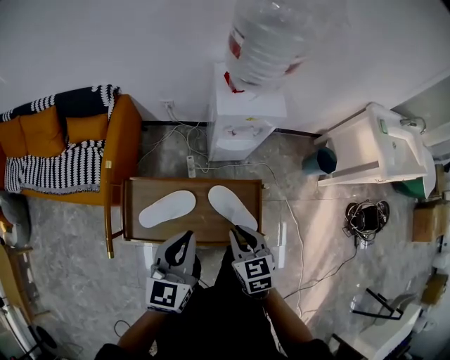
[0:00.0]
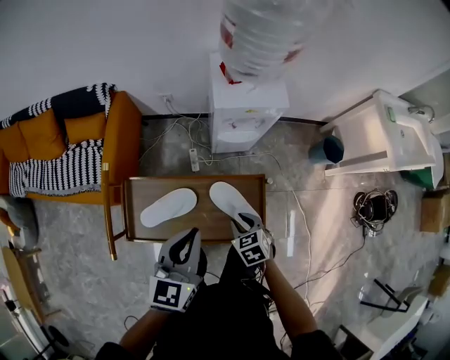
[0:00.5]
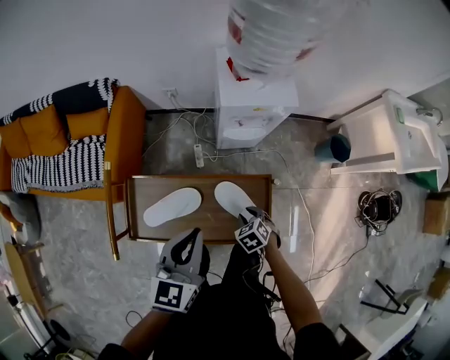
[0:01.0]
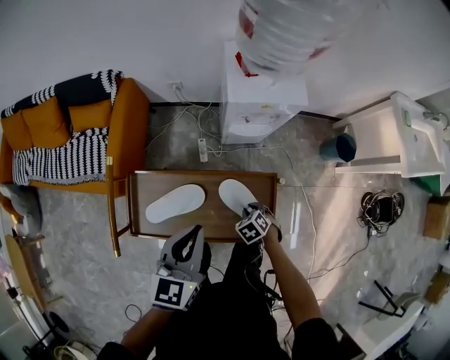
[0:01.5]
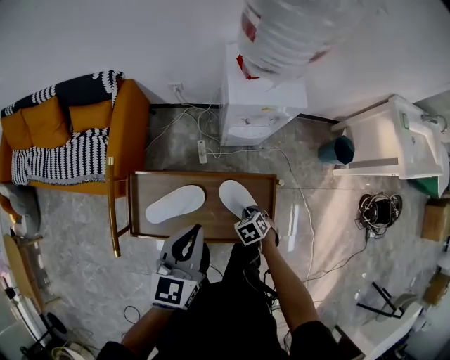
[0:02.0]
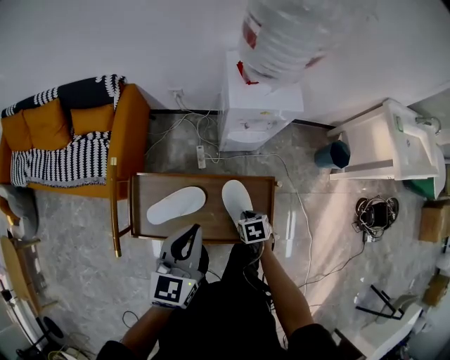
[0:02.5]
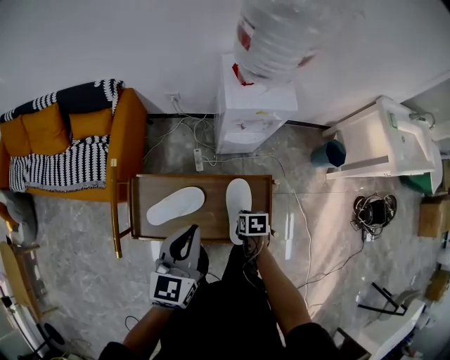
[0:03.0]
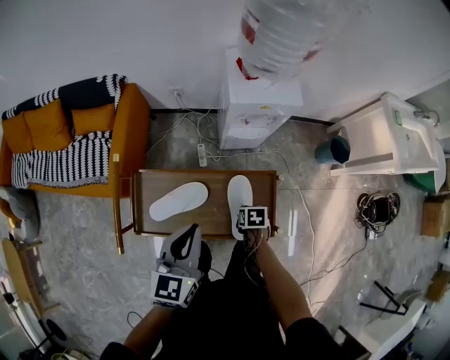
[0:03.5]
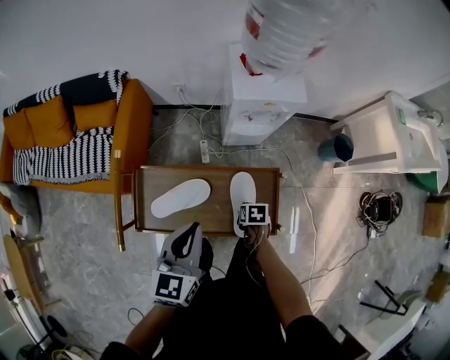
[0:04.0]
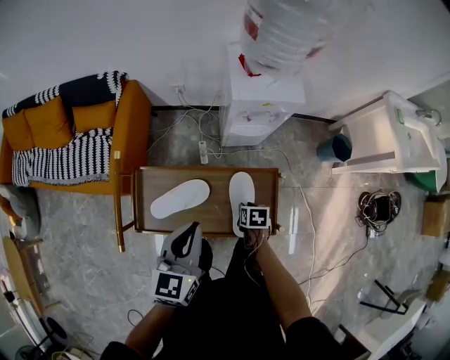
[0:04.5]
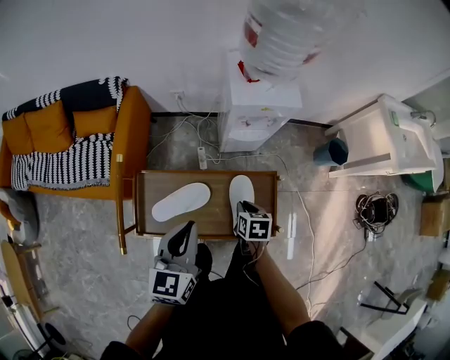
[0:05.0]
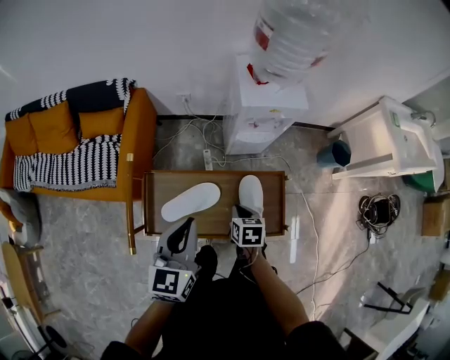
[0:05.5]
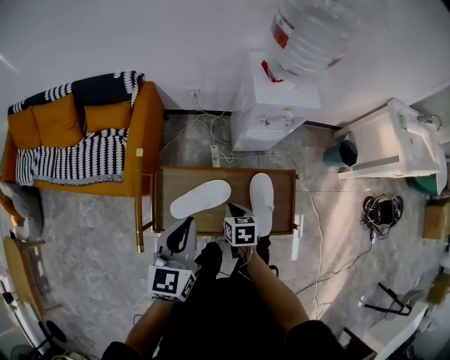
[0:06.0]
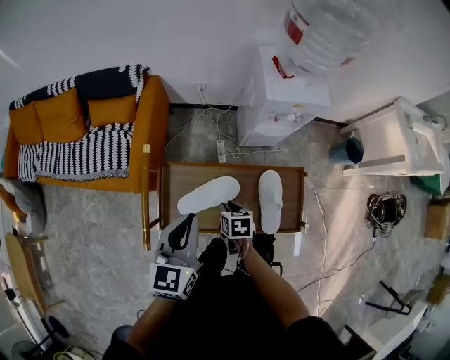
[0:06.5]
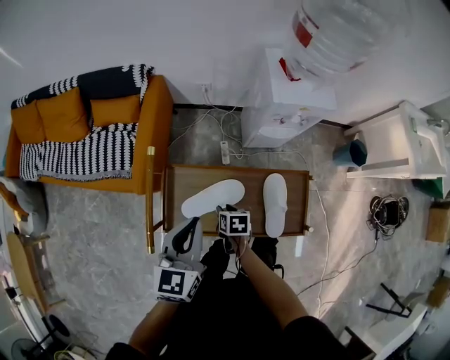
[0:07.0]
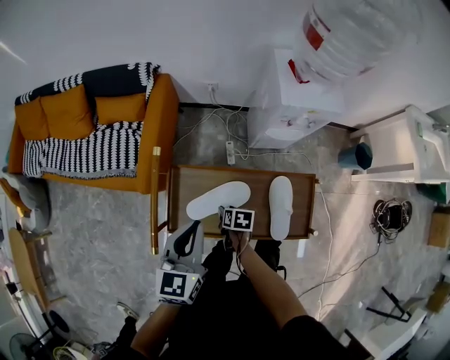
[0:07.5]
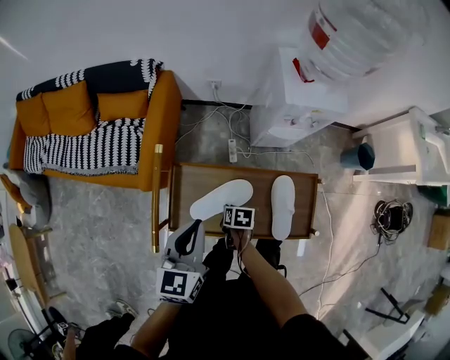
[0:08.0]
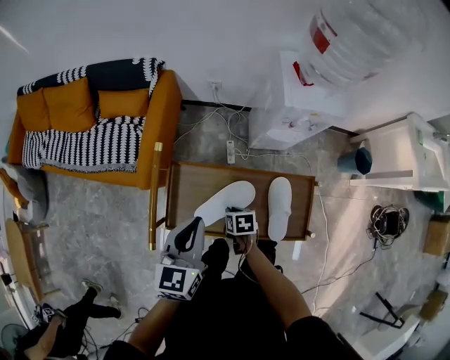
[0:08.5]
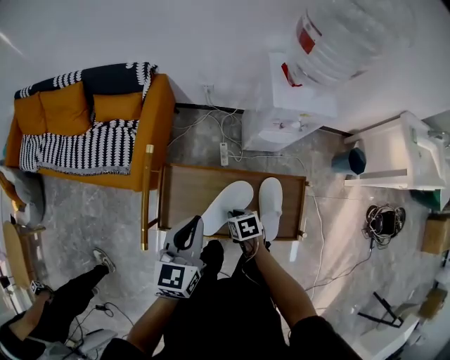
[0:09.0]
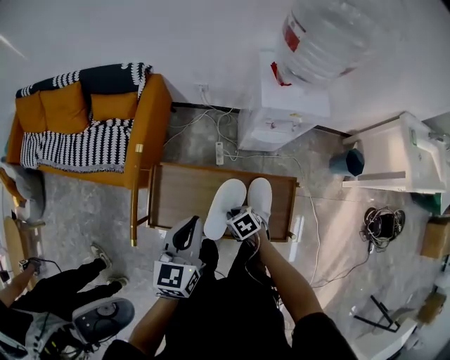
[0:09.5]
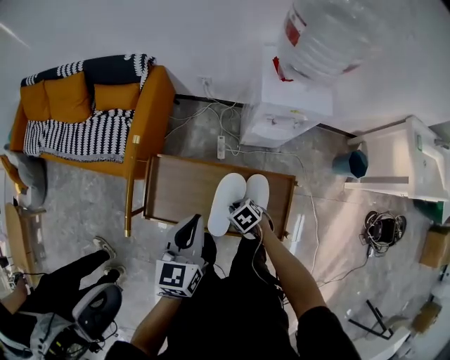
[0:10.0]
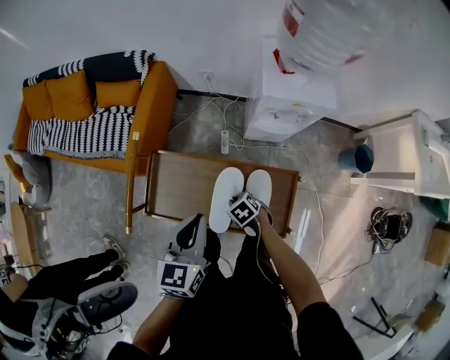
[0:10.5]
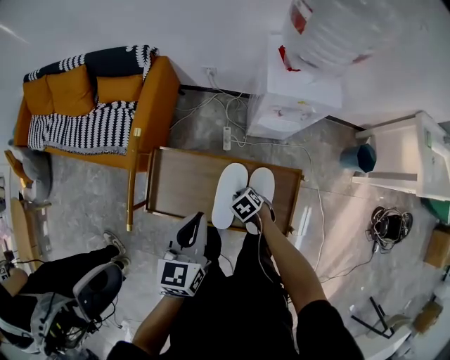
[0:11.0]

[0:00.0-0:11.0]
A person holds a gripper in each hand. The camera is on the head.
0.0 to 2.0 s: The right gripper heads downward, covering approximately 20 cm, and points its fingers some 30 degrees further downward. The left gripper shifts by approximately 5 cm.
2.0 to 3.5 s: The right gripper changes its angle by roughly 40 degrees.
3.5 to 5.5 s: The right gripper moves to the left and upward, about 15 cm. The left gripper moves to the left, approximately 5 cm.
5.5 to 7.5 s: The left gripper is displaced to the left by about 10 cm. The right gripper heads to the left and downward, covering roughly 20 cm, turns by some 20 degrees, and opens.
7.5 to 9.0 s: The right gripper is displaced upward by about 5 cm, changes its angle by some 30 degrees, and closes up.
9.0 to 11.0 s: The grippers both shift to the right by about 5 cm. The right gripper turns by about 30 degrees.

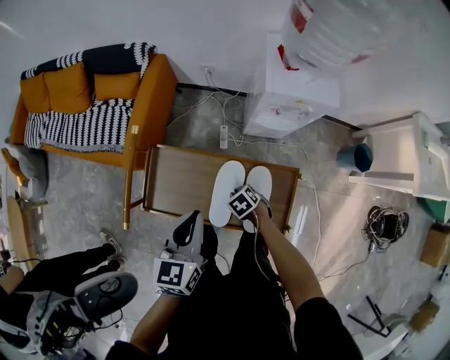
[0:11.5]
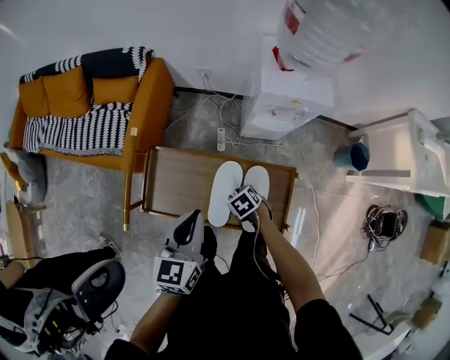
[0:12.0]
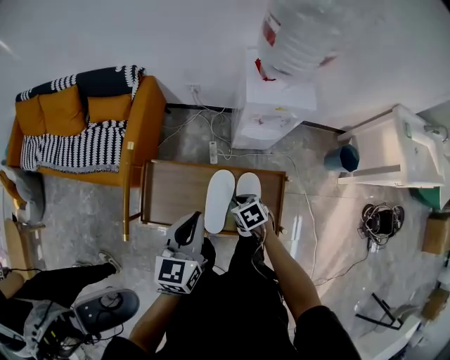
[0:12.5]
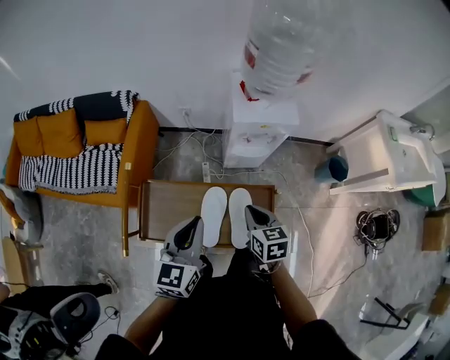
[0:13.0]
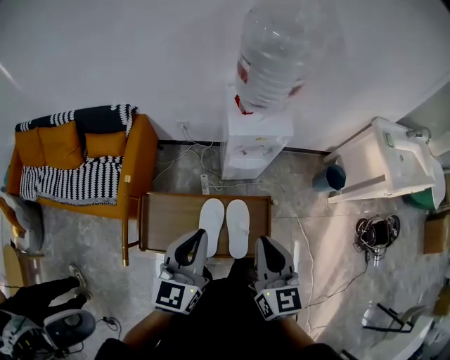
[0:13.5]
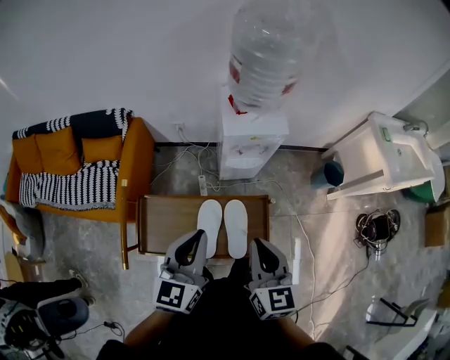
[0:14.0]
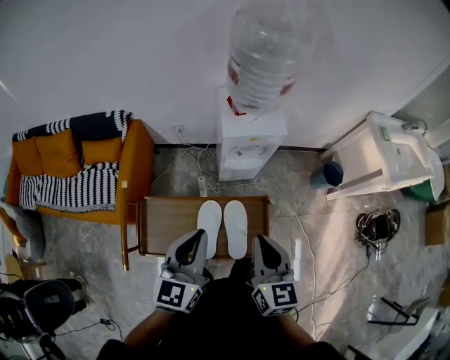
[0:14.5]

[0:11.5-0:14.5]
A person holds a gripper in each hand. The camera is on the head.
11.5 to 13.0 s: The right gripper heads upward, covering approximately 25 cm, and tips its fingers upward by roughly 30 degrees, while the left gripper moves upward, roughly 5 cm.
13.0 to 14.5 s: The left gripper heads upward, covering roughly 5 cm. The right gripper travels upward by approximately 15 cm, and changes its angle by some 30 degrees.

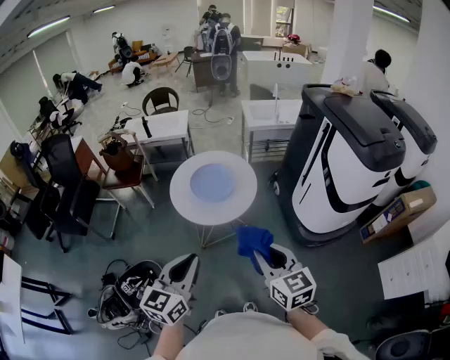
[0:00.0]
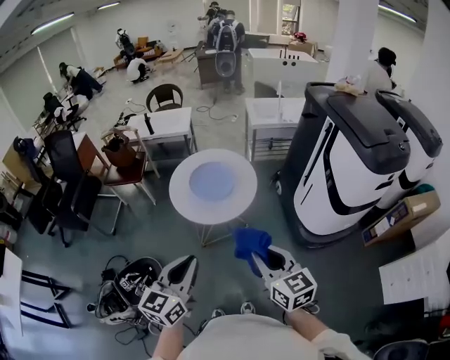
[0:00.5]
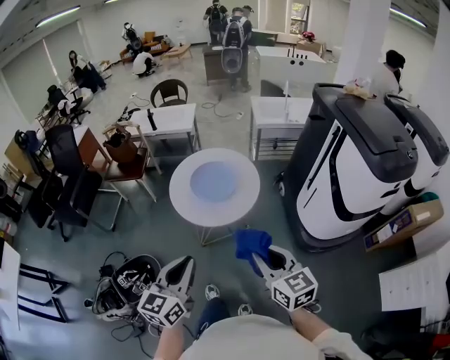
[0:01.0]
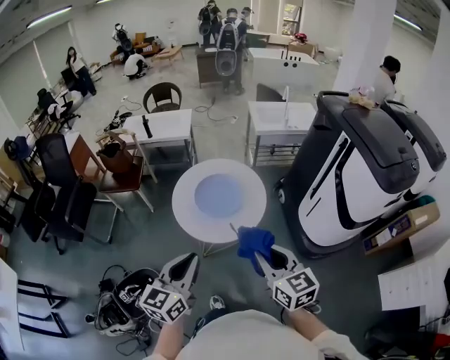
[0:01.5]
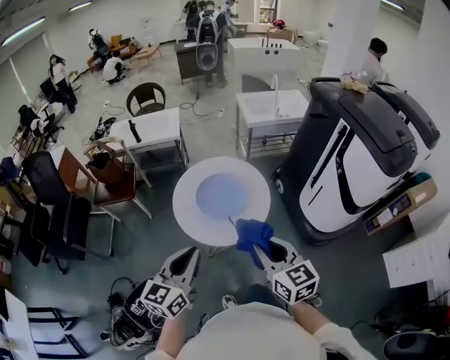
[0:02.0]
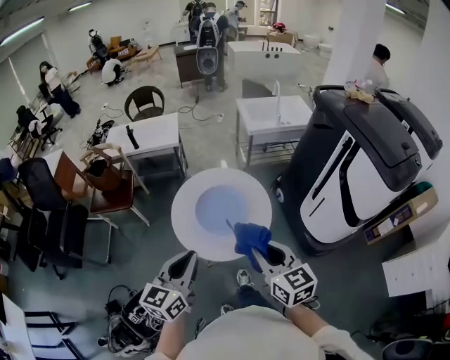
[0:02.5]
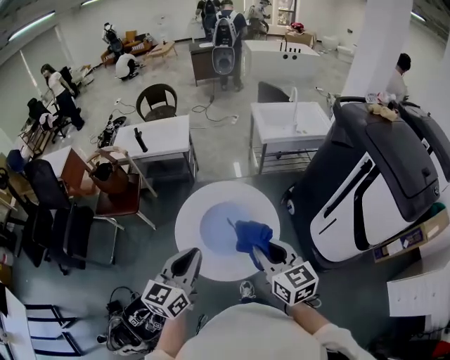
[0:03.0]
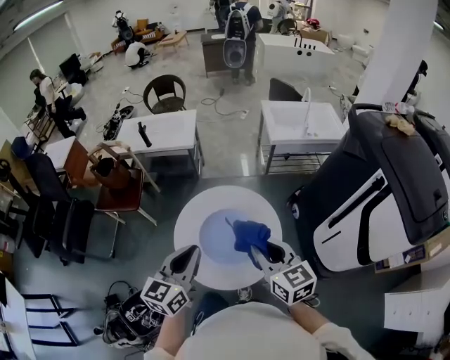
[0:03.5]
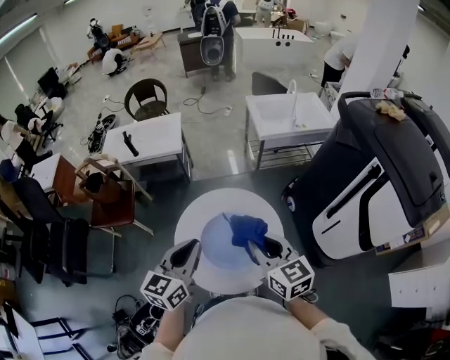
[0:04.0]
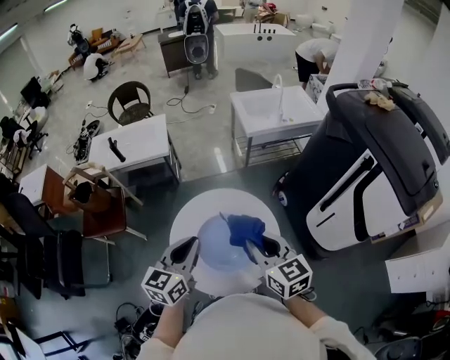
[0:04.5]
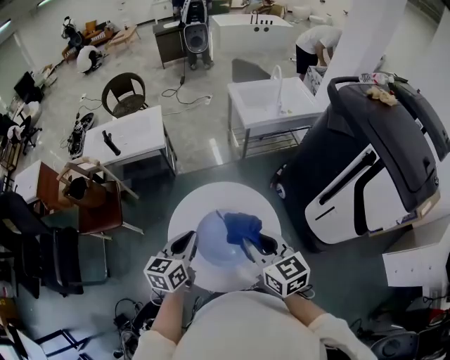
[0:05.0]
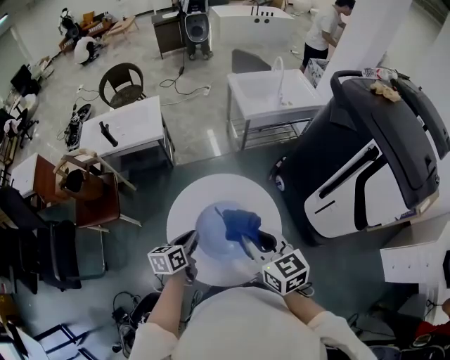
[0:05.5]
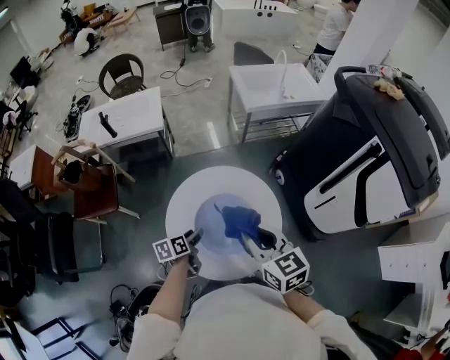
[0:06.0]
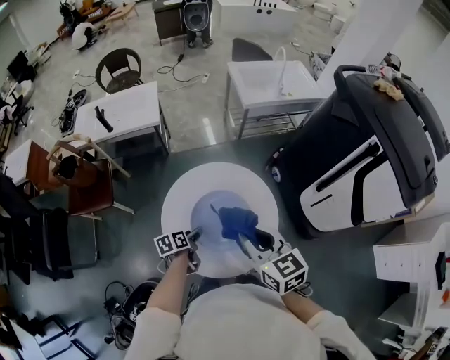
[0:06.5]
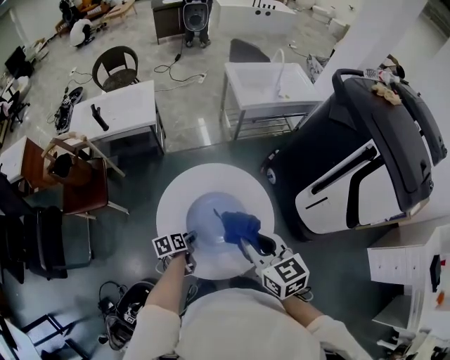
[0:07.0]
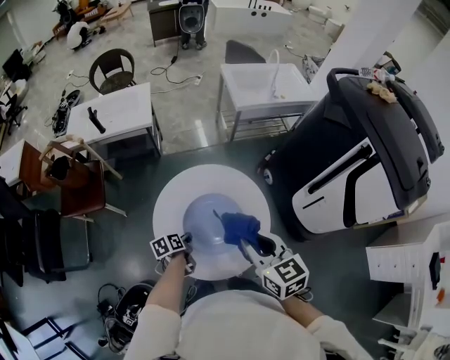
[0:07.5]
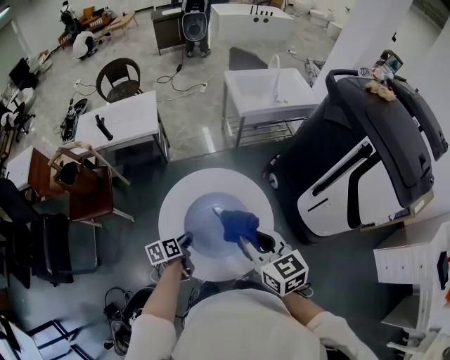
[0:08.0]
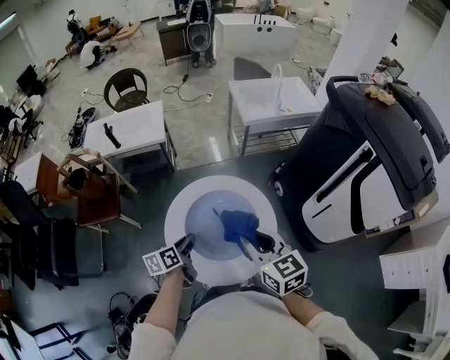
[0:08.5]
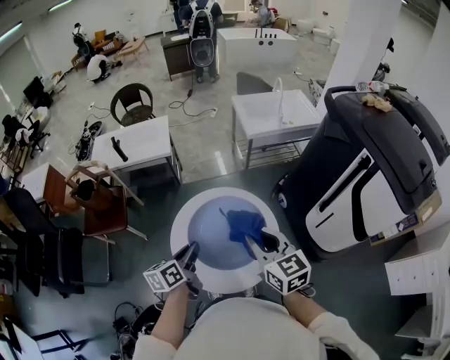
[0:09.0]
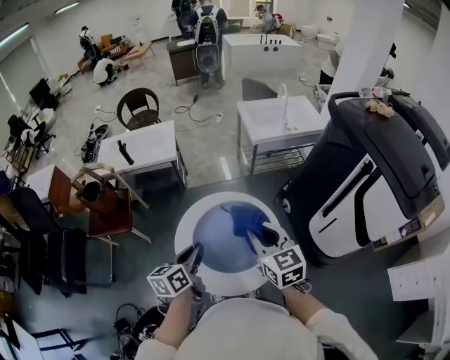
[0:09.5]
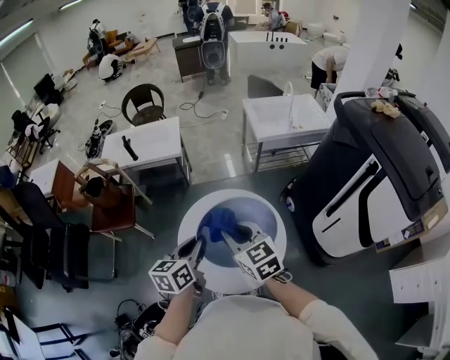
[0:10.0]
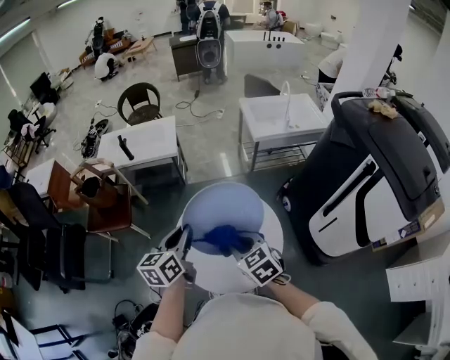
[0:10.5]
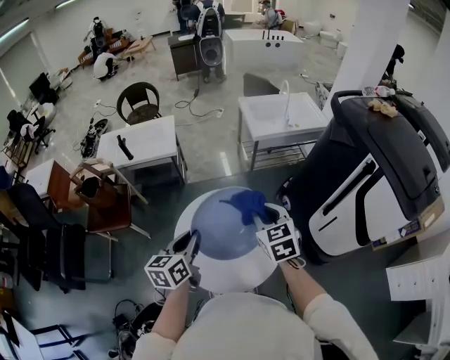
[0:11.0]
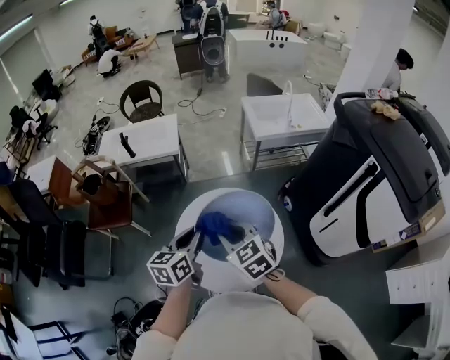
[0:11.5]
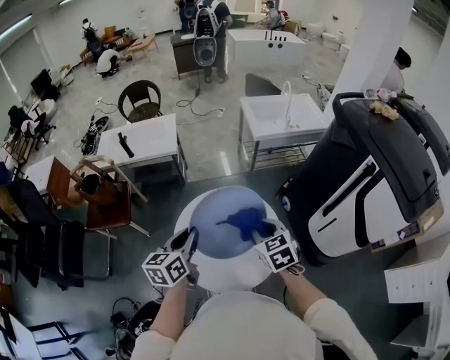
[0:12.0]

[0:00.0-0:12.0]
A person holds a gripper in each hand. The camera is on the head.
0.0 to 2.0 s: The grippers both shift forward and to the left by approximately 20 cm.
2.0 to 4.0 s: Both grippers travel together forward, roughly 30 cm.
4.0 to 6.0 s: The left gripper travels downward by approximately 30 cm, turns by roughly 50 degrees, and opens its fingers; the right gripper shifts by some 5 cm.
6.0 to 8.0 s: The left gripper closes up.
8.0 to 10.0 s: The right gripper is displaced to the left by about 10 cm; the left gripper is displaced upward by approximately 20 cm, and changes its angle by some 30 degrees.
10.0 to 12.0 s: The right gripper moves left and right over approximately 10 cm, changing direction 2 times, and rotates roughly 20 degrees.

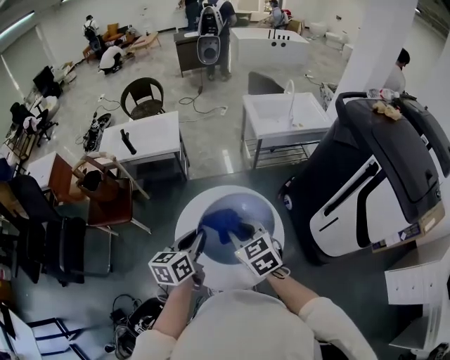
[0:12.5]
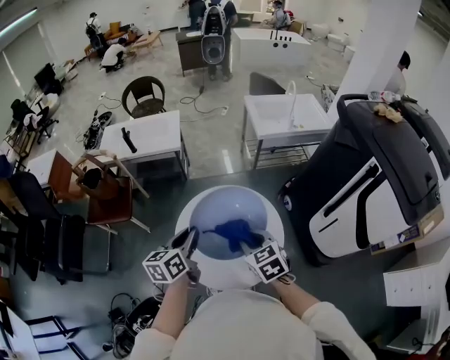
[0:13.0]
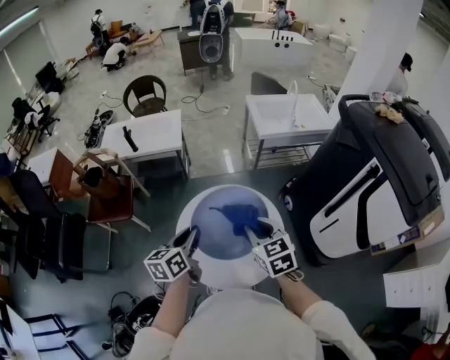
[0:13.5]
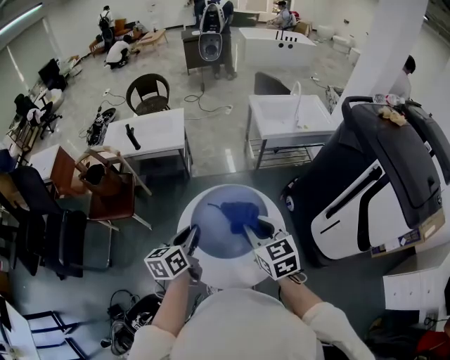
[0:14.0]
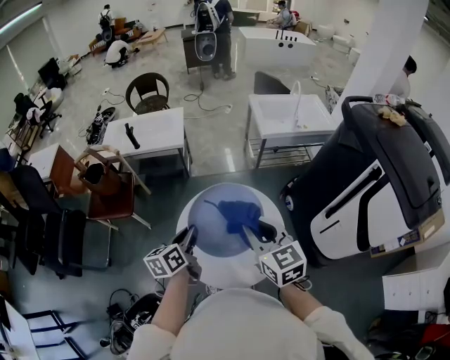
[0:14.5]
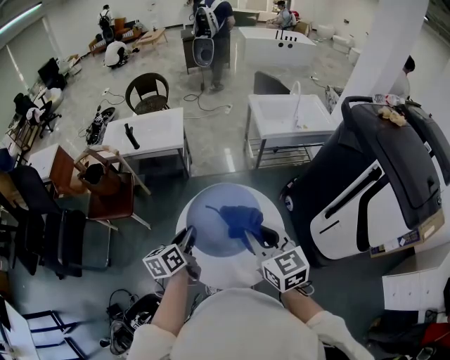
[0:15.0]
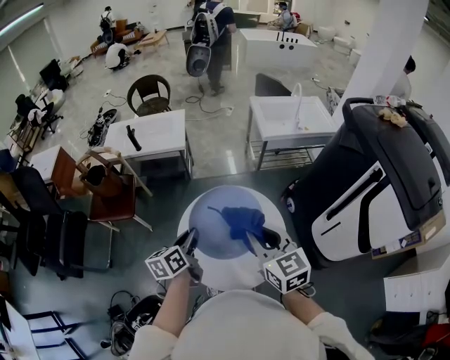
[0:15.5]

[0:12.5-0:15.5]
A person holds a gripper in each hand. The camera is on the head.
12.5 to 14.0 s: The right gripper moves approximately 5 cm.
14.0 to 15.5 s: The grippers move only a little.
